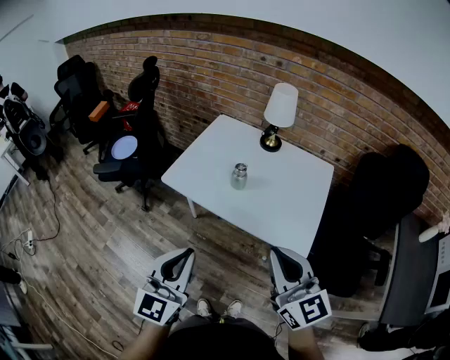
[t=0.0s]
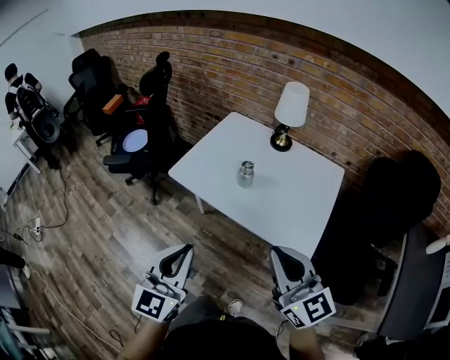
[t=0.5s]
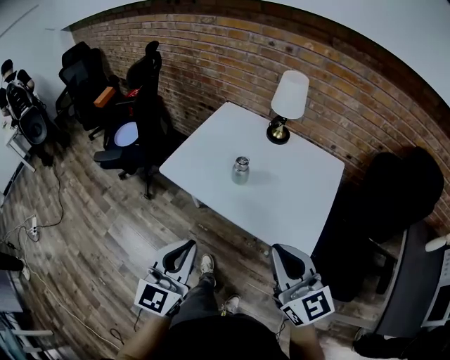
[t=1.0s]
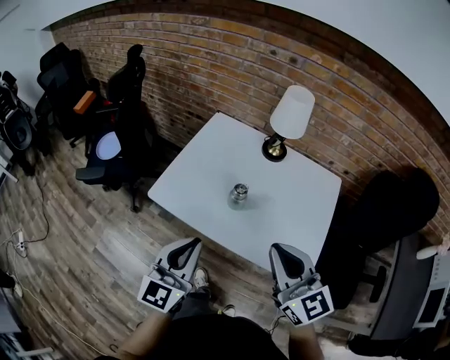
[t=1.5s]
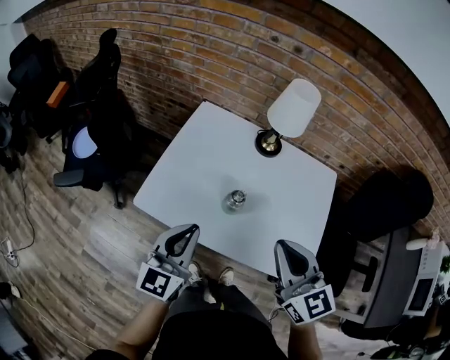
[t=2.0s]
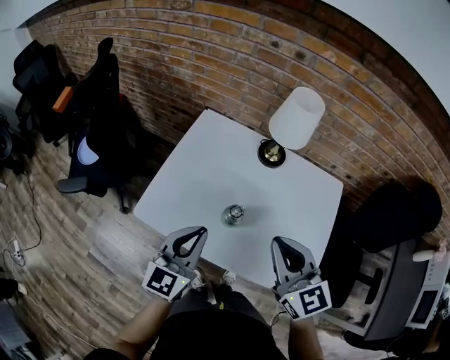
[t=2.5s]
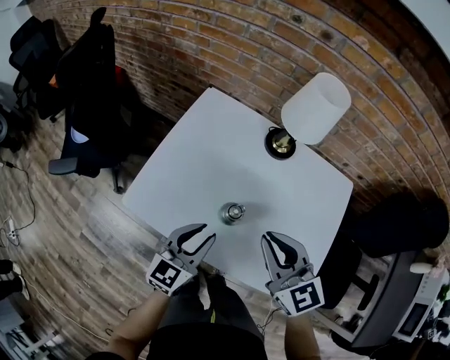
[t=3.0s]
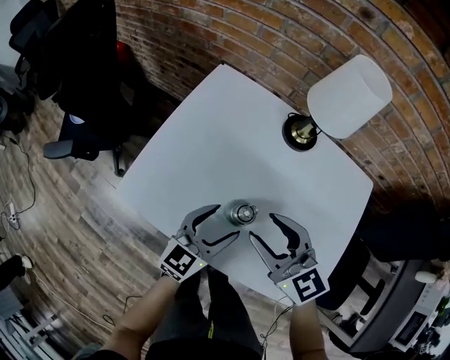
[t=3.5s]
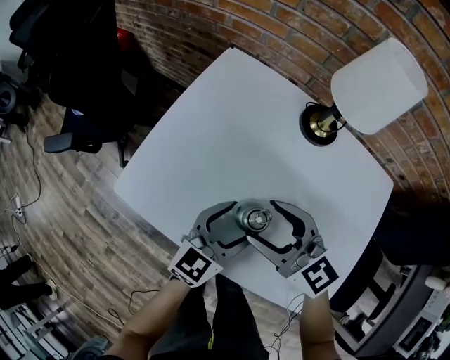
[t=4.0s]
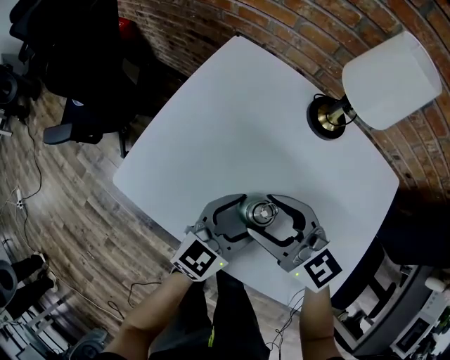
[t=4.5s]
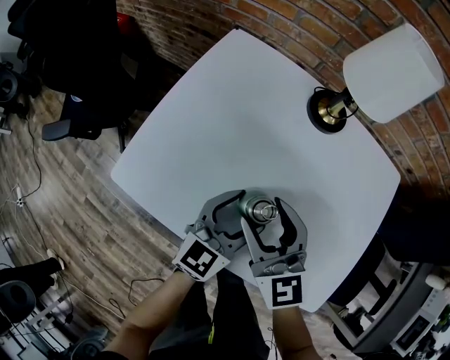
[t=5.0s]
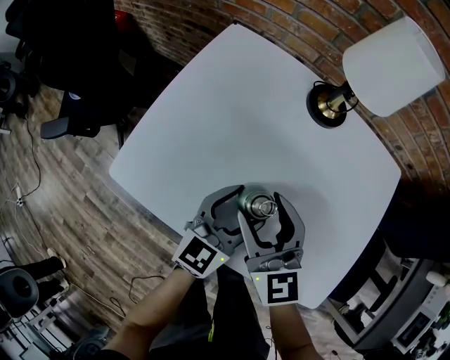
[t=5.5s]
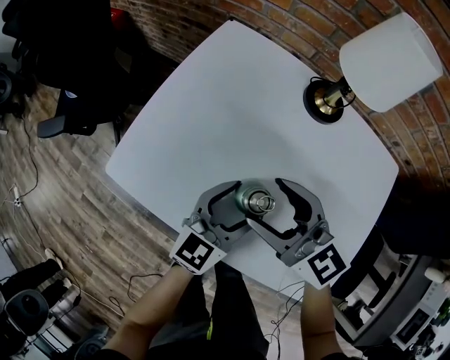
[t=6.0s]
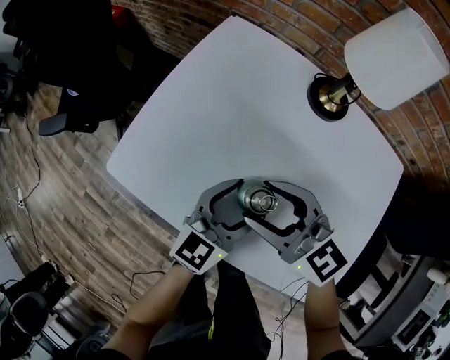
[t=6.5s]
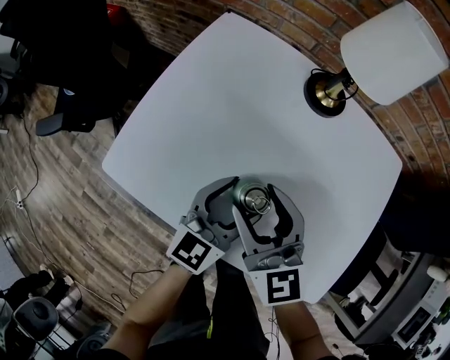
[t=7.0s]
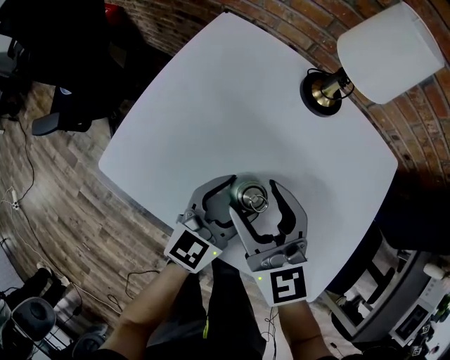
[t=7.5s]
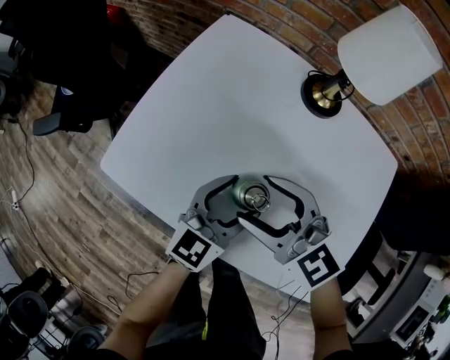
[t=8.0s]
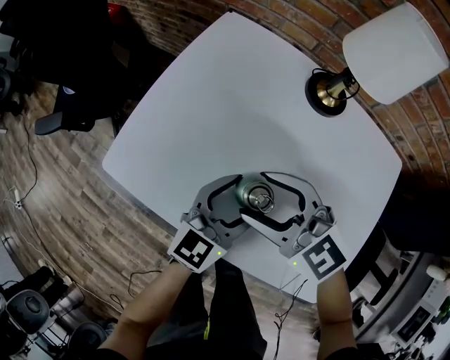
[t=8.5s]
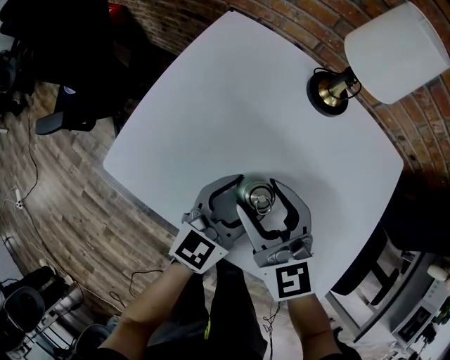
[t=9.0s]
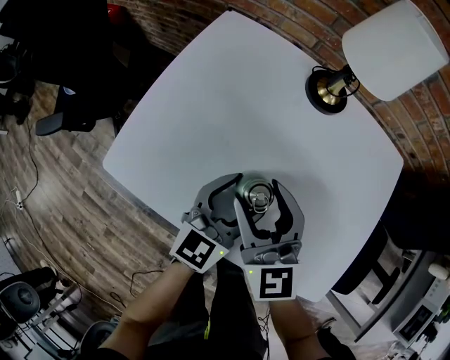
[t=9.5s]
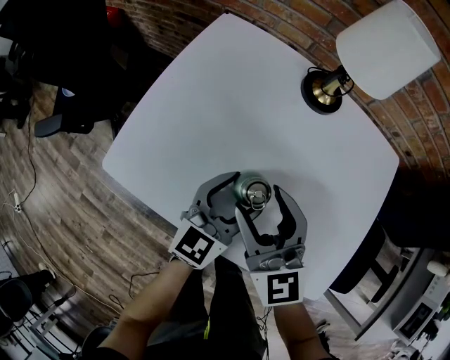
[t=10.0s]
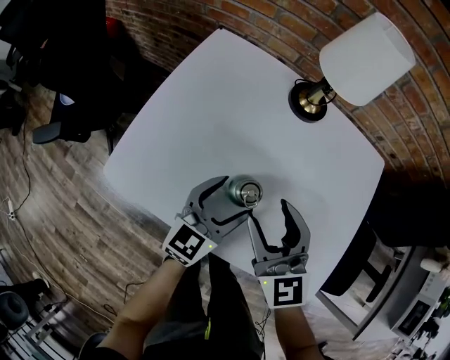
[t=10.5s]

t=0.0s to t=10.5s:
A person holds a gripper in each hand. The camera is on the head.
t=0.0s to t=2.0s: The grippers both shift forward by approximately 25 cm.
t=2.0s to t=4.0s: The right gripper moves downward and forward, some 25 cm, changes its angle by approximately 40 degrees, and opens, while the left gripper moves downward, to the right and forward, about 25 cm, and opens.
t=8.5s to t=10.5s: The right gripper heads to the right, covering roughly 5 cm, and changes its angle by approximately 40 degrees.

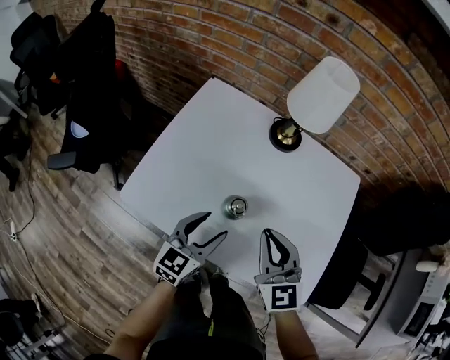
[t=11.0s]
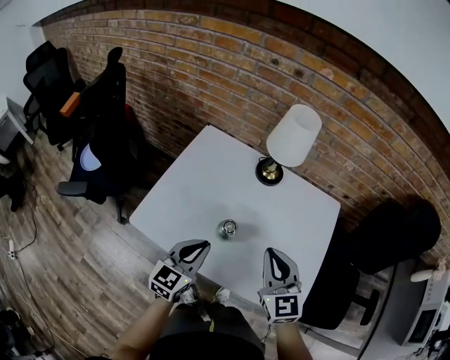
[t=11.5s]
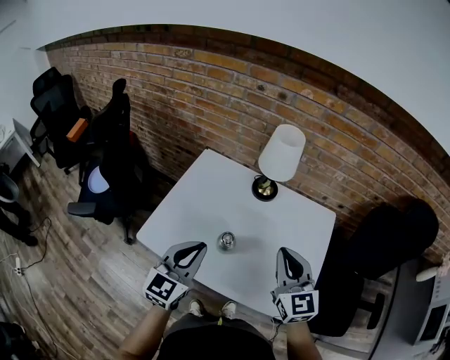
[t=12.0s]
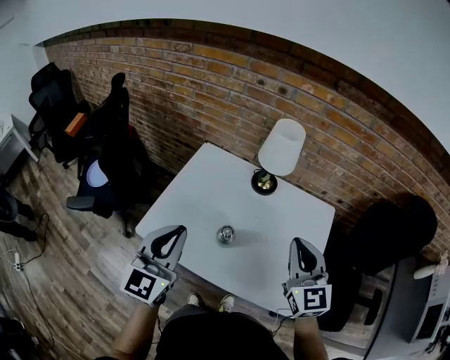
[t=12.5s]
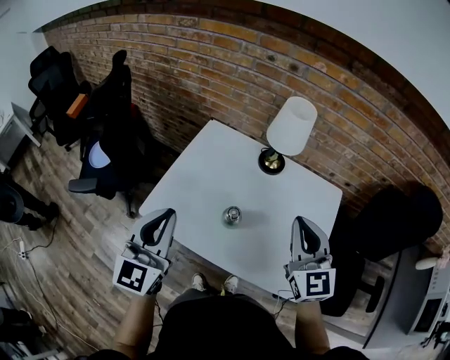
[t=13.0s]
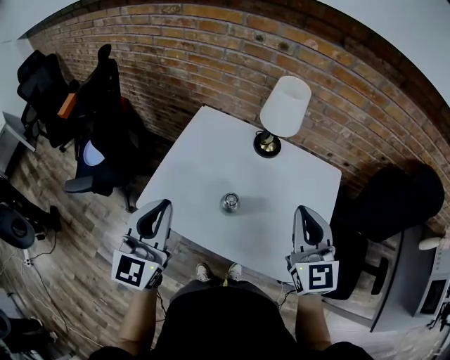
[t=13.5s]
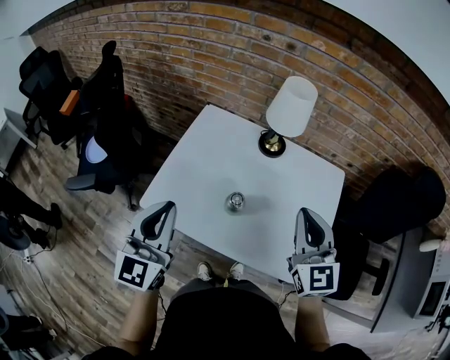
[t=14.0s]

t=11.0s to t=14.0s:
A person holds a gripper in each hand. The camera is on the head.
t=11.0s to t=12.5s: The left gripper moves upward, roughly 25 cm, swivels about 30 degrees, and closes up. The right gripper shifts roughly 20 cm upward and to the right.
t=12.5s to t=14.0s: There are only small adjustments of the grippers.

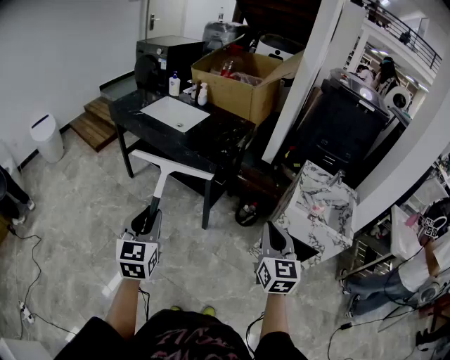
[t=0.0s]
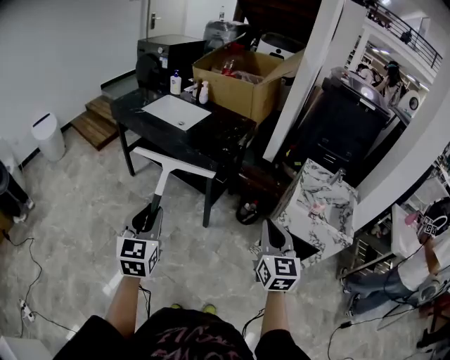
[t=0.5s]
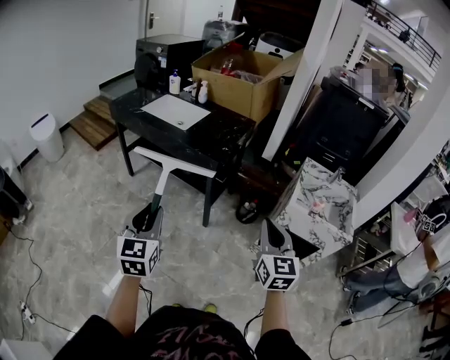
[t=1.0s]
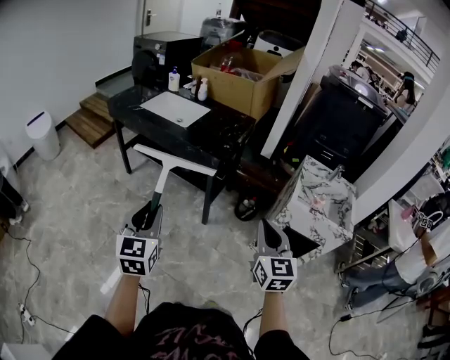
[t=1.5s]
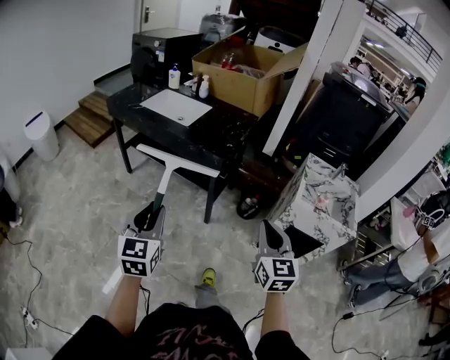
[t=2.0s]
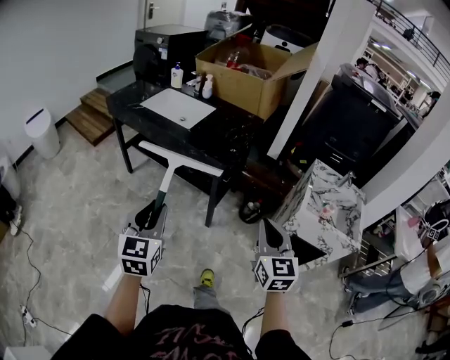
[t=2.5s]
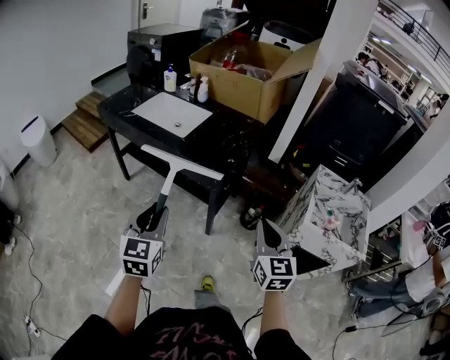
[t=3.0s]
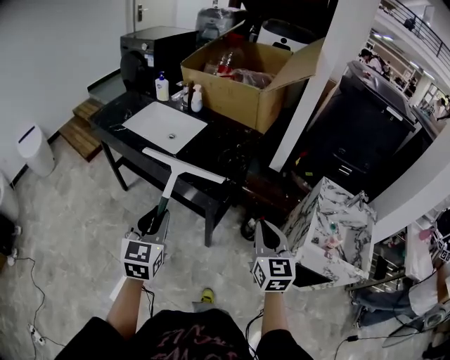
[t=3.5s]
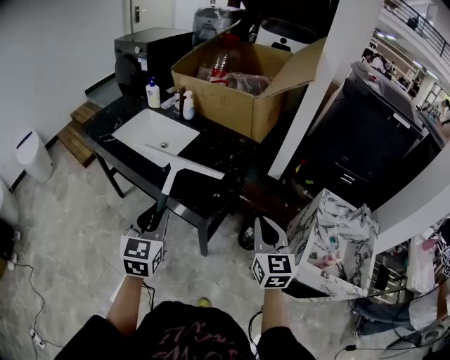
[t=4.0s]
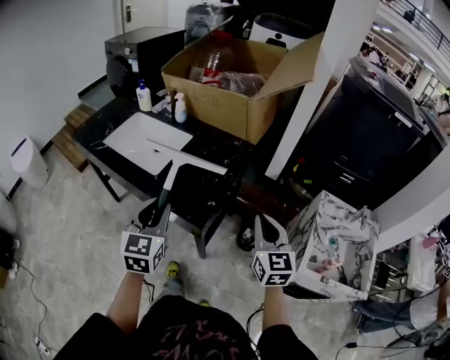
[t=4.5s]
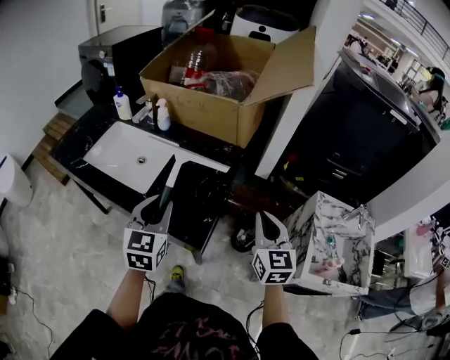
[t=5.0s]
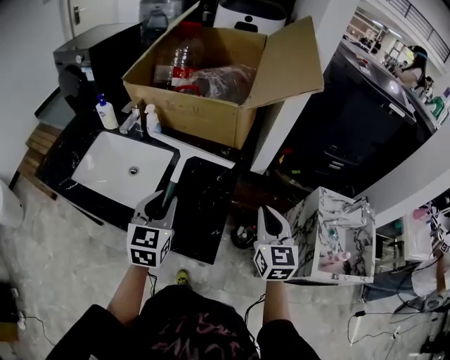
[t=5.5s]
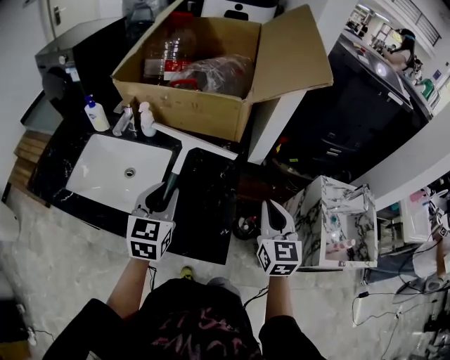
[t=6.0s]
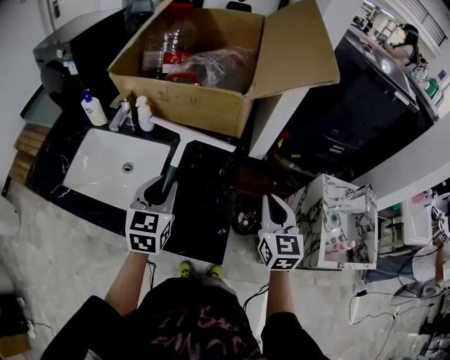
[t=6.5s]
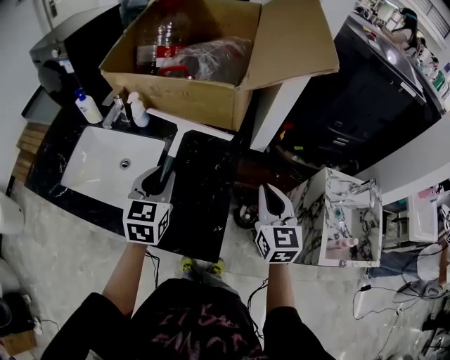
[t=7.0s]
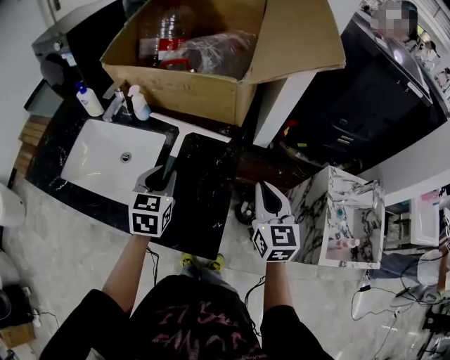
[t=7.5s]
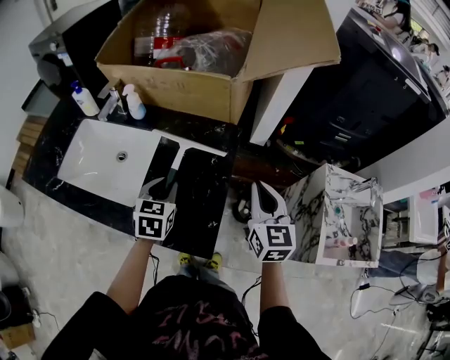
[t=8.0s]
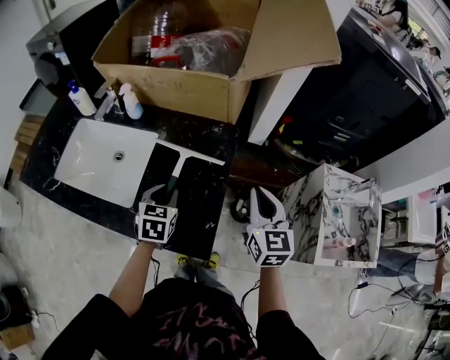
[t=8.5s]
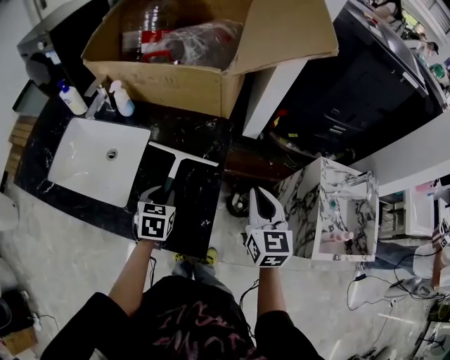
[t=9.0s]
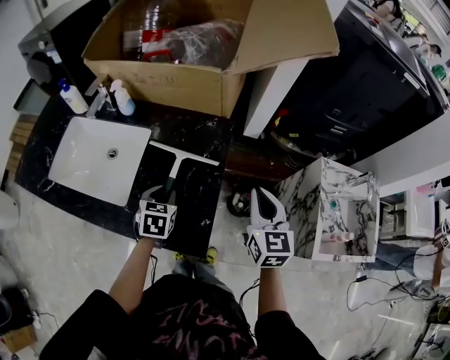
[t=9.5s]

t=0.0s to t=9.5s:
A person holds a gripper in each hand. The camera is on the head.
t=0.0s to t=2.0s: The right gripper goes about 5 cm to the left.
t=2.0s to t=4.0s: The grippers both shift forward by roughly 35 cm.
t=4.0s to t=5.5s: Both grippers travel together forward, about 20 cm.
t=5.5s to t=7.5s: The left gripper is displaced forward and downward by approximately 10 cm. The right gripper heads forward, covering about 5 cm.
t=7.5s to t=9.5s: The left gripper moves downward, roughly 15 cm.

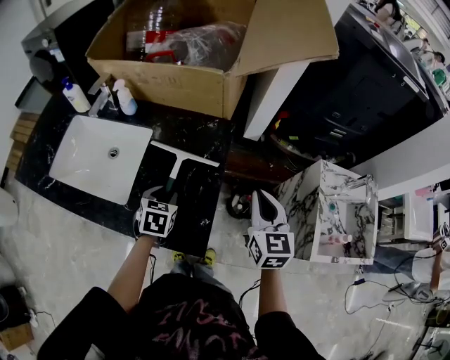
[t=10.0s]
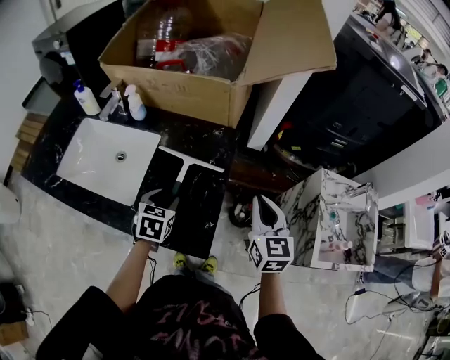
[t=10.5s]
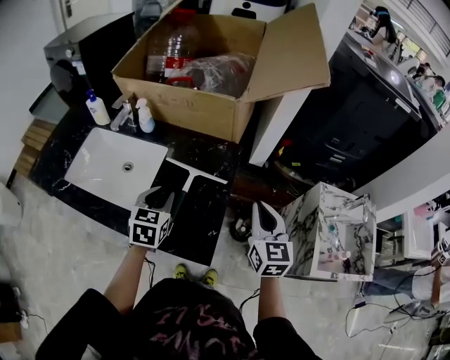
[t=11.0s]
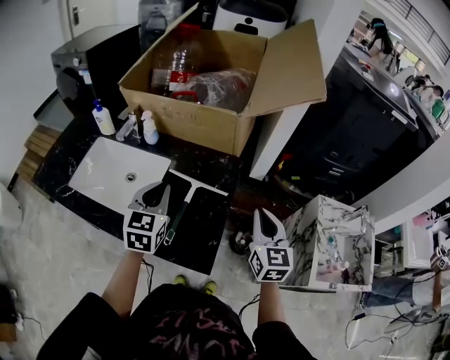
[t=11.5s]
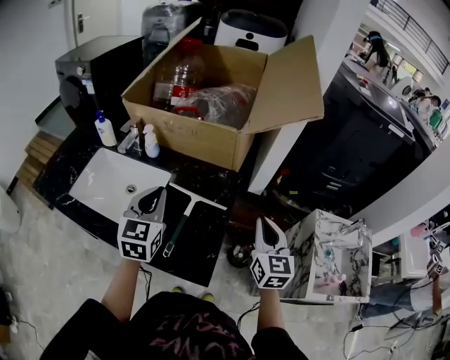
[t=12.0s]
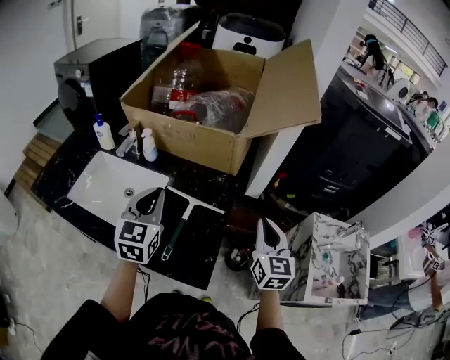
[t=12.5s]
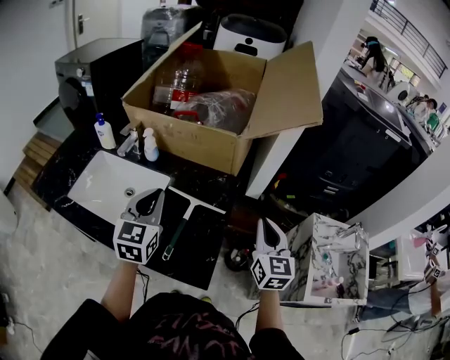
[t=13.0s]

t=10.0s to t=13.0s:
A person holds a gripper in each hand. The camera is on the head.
t=10.0s to t=11.5s: The right gripper is displaced upward by some 5 cm; the left gripper is displaced upward by approximately 20 cm, angles its fingers upward, by approximately 30 degrees, and closes its fingers.
t=11.5s to t=13.0s: There are only small adjustments of the grippers.
